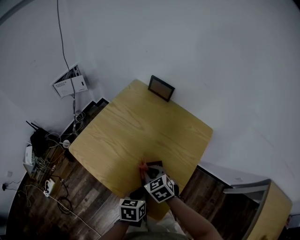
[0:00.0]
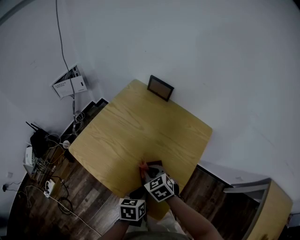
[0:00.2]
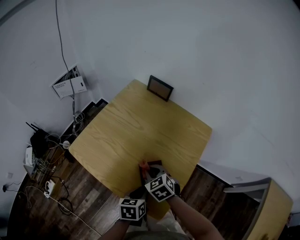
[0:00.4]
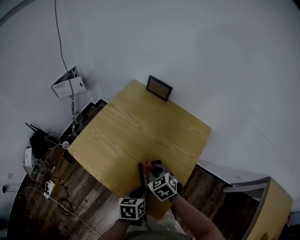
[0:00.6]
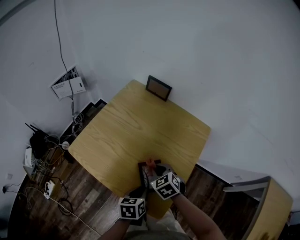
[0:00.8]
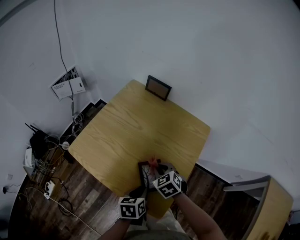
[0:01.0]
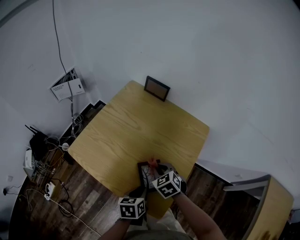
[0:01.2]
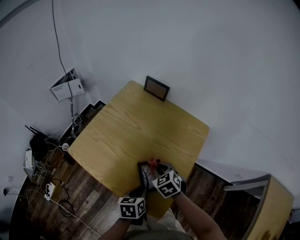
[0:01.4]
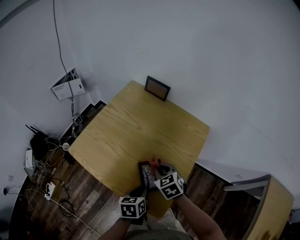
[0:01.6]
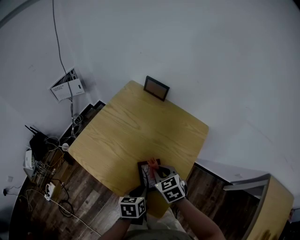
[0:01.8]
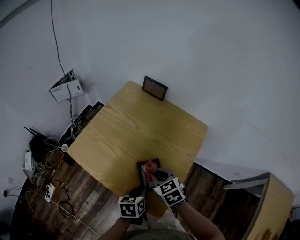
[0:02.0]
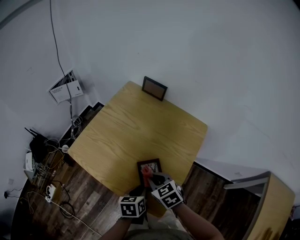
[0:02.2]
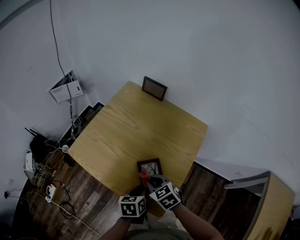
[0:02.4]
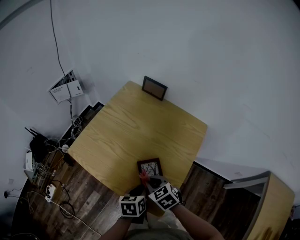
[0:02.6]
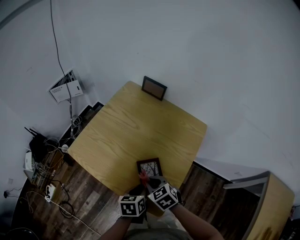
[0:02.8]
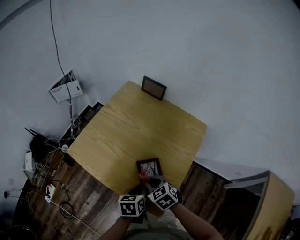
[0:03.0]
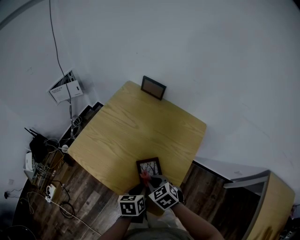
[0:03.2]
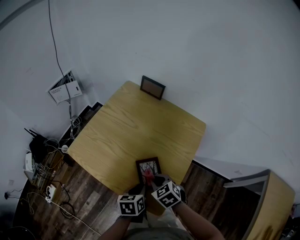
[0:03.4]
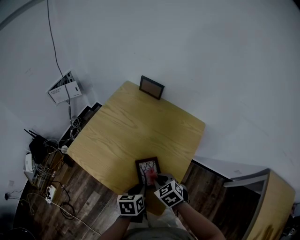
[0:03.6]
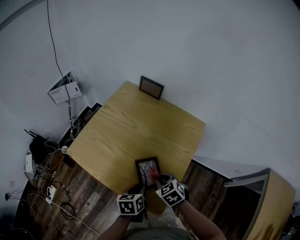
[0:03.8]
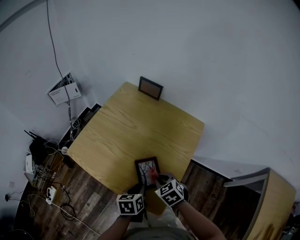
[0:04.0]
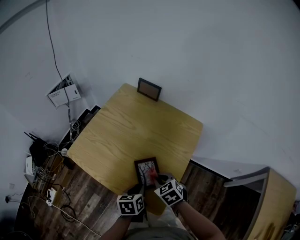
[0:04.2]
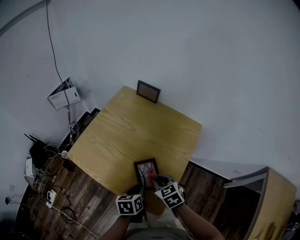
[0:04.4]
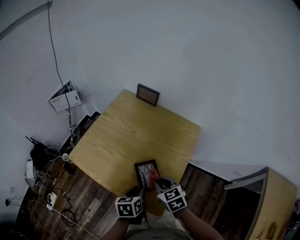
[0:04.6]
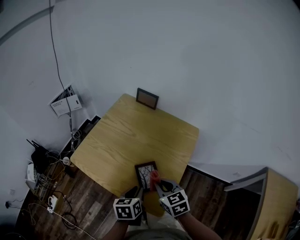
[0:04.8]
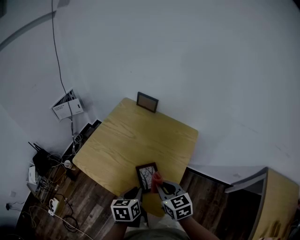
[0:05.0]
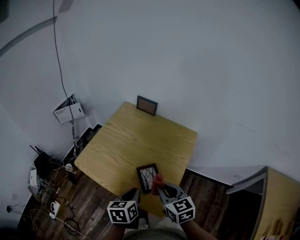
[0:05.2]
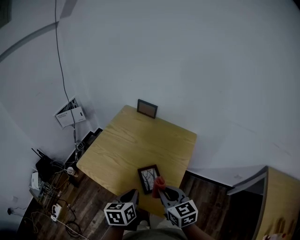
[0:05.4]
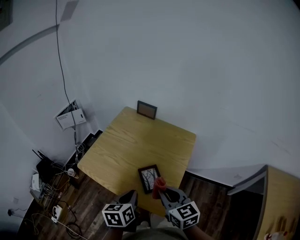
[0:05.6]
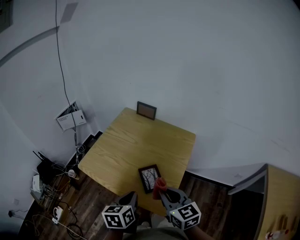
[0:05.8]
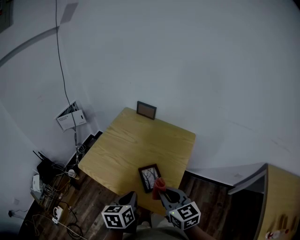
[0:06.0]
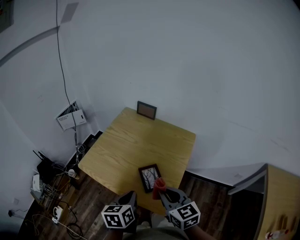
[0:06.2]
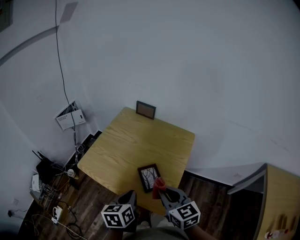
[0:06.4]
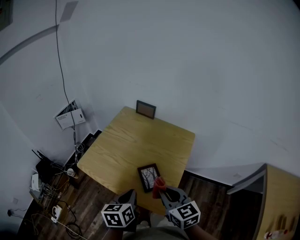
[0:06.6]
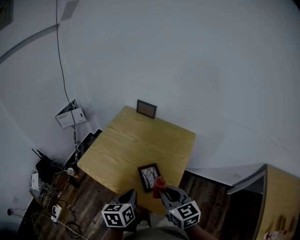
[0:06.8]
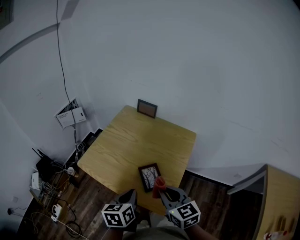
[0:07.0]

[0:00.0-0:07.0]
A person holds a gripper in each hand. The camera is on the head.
0:00.0 to 0:01.4: The right gripper shifts about 5 cm to the right.
0:01.4 to 0:02.8: The right gripper heads backward, covering some 10 cm.
0:02.8 to 0:04.2: The right gripper travels to the right by approximately 5 cm.
0:04.2 to 0:05.6: The right gripper heads upward and backward, covering about 20 cm, and tilts its fingers some 30 degrees upward. The left gripper shifts some 15 cm upward.
0:05.6 to 0:07.0: Neither gripper changes place.

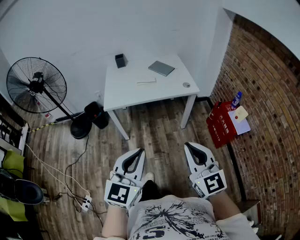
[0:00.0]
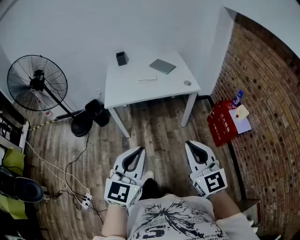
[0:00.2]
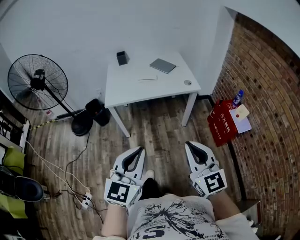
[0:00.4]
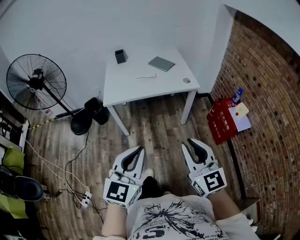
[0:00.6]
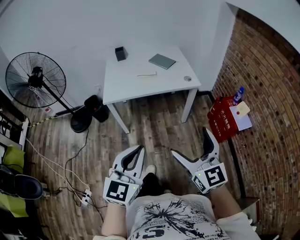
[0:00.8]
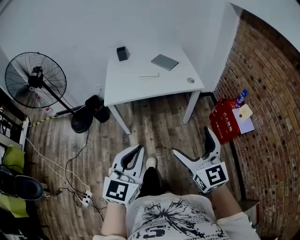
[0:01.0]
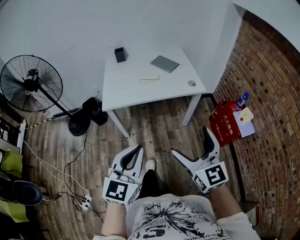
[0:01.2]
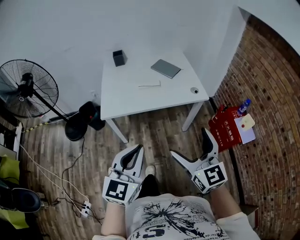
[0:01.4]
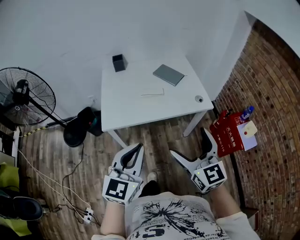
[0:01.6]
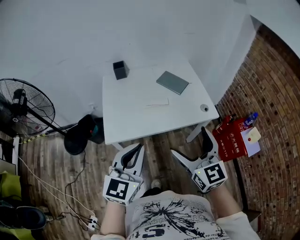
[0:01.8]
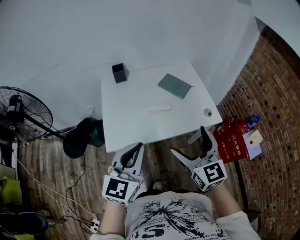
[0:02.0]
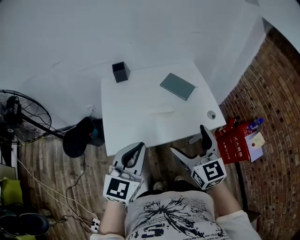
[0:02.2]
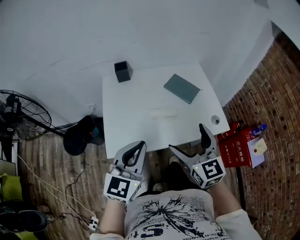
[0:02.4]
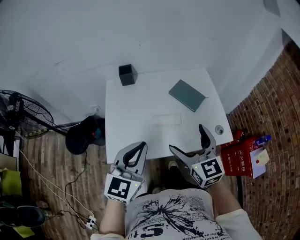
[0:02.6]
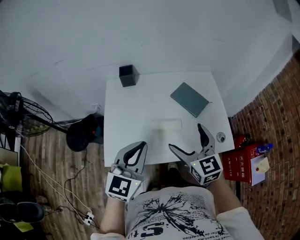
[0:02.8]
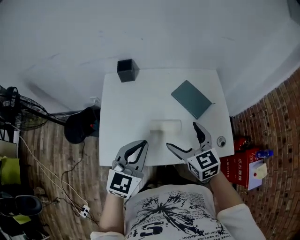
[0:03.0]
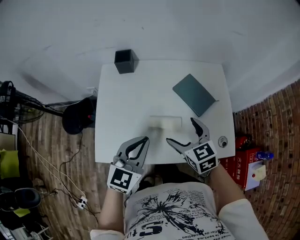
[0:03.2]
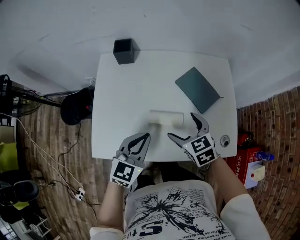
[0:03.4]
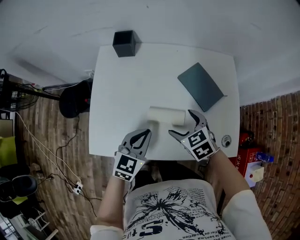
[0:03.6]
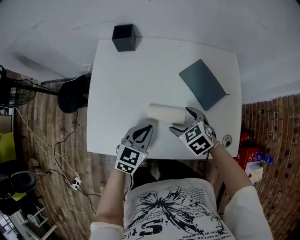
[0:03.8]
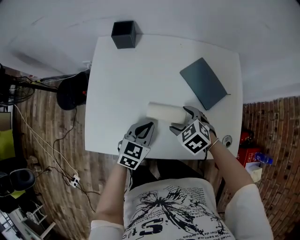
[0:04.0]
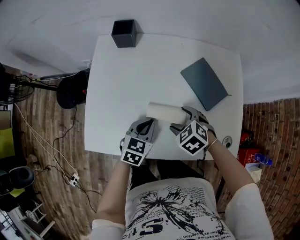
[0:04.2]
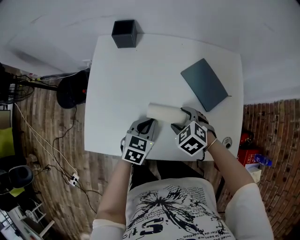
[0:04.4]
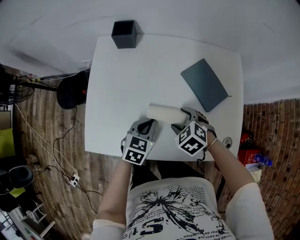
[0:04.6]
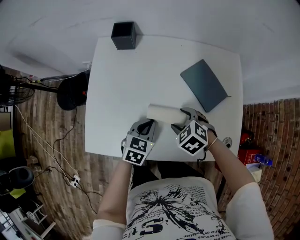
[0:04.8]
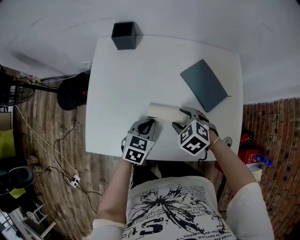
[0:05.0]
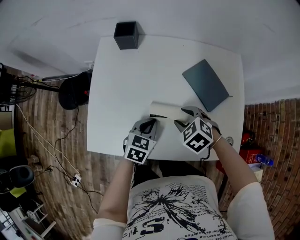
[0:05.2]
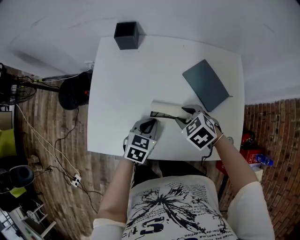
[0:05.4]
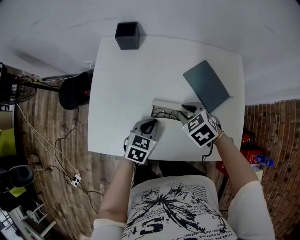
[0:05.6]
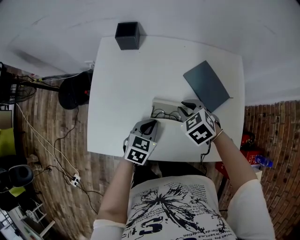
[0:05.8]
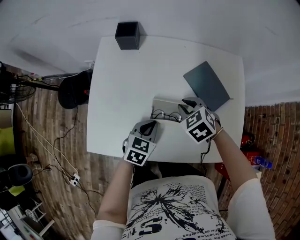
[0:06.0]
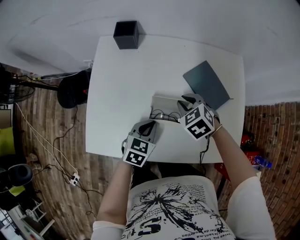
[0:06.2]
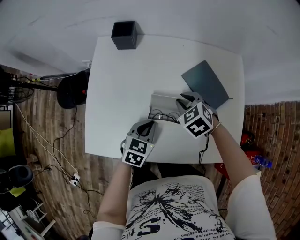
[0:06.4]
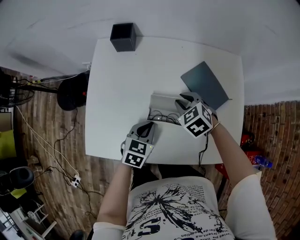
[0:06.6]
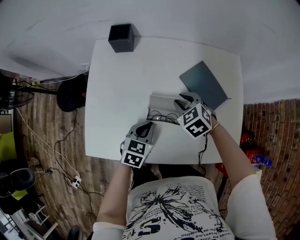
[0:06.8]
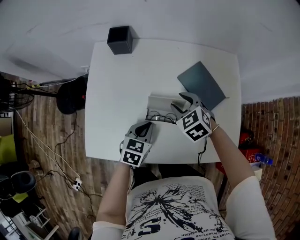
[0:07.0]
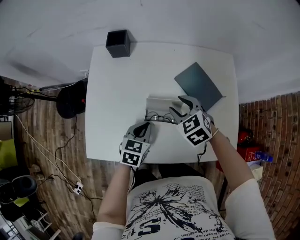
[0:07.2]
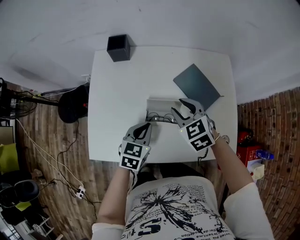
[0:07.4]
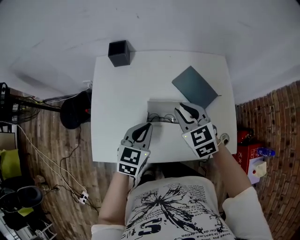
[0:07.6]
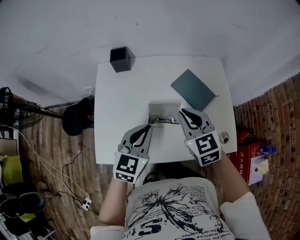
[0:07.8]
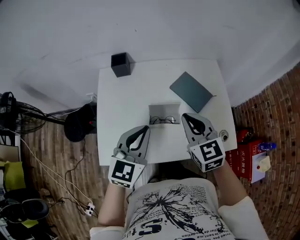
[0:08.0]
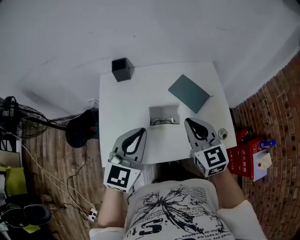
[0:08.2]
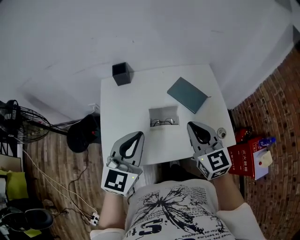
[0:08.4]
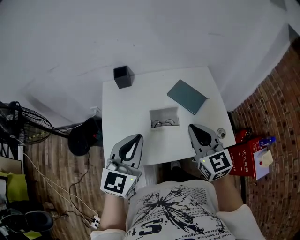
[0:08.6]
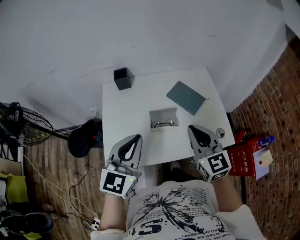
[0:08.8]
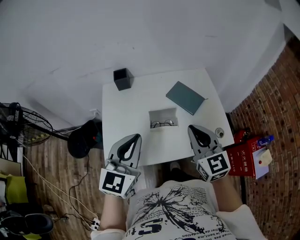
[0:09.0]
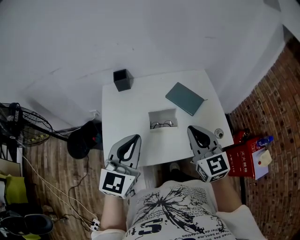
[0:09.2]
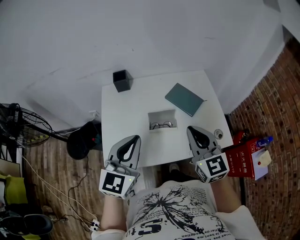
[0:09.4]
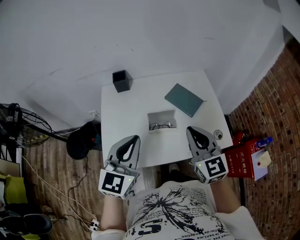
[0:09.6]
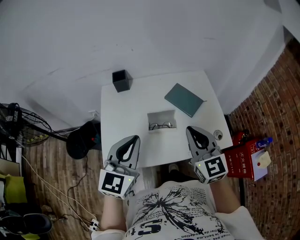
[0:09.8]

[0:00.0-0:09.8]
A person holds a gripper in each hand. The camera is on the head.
0:00.0 to 0:01.4: The two grippers go approximately 20 cm forward. The right gripper opens up.
0:01.4 to 0:02.8: The two grippers travel together, forward, about 40 cm.
0:02.8 to 0:04.2: The two grippers go roughly 30 cm downward and forward. The right gripper angles its fingers downward, by some 50 degrees; the left gripper tips its fingers downward by roughly 30 degrees.
0:04.2 to 0:05.6: The right gripper shifts by roughly 5 cm, and closes its fingers.
0:05.6 to 0:07.0: The right gripper is displaced forward by approximately 5 cm.
0:07.0 to 0:08.4: The left gripper shifts about 30 cm upward, and tilts its fingers approximately 40 degrees upward. Meanwhile the right gripper is displaced upward and backward by approximately 30 cm, and angles its fingers upward, by about 40 degrees.
0:08.4 to 0:09.8: The grippers move only a little.

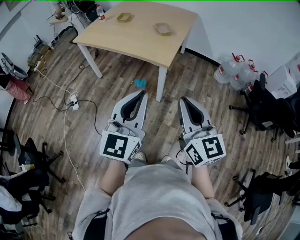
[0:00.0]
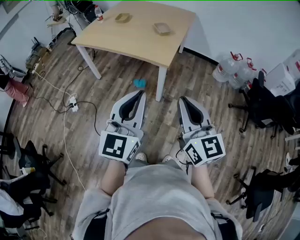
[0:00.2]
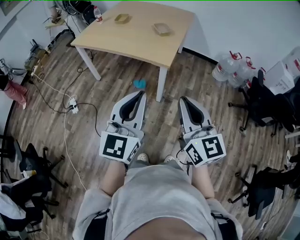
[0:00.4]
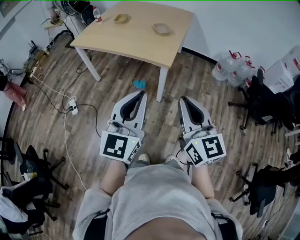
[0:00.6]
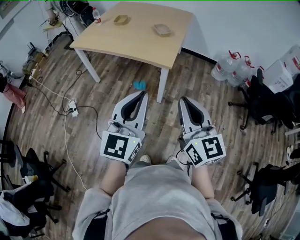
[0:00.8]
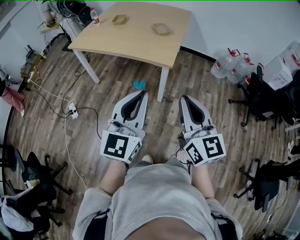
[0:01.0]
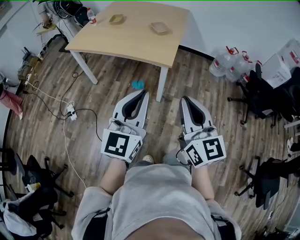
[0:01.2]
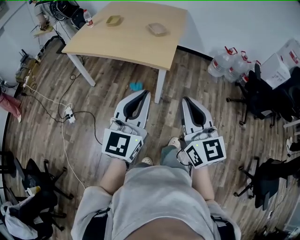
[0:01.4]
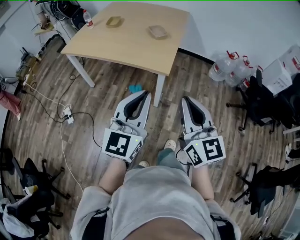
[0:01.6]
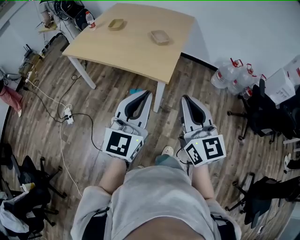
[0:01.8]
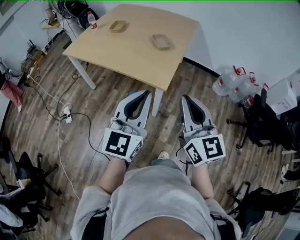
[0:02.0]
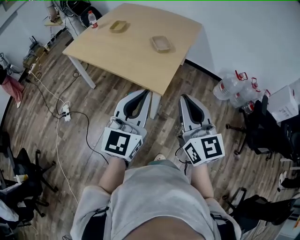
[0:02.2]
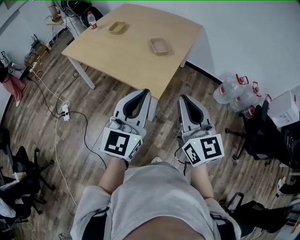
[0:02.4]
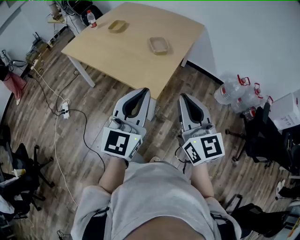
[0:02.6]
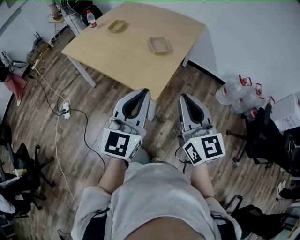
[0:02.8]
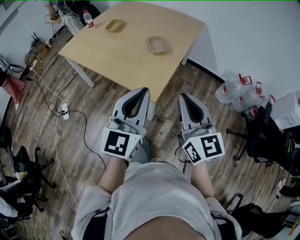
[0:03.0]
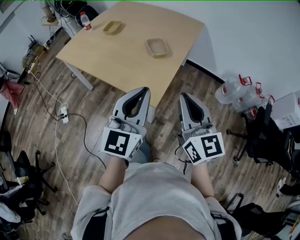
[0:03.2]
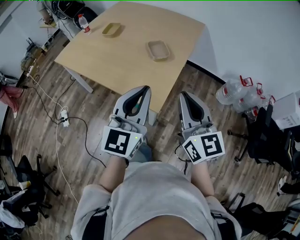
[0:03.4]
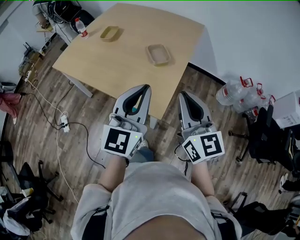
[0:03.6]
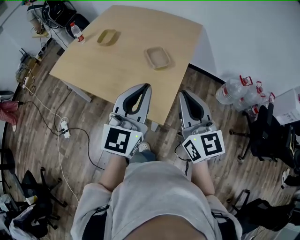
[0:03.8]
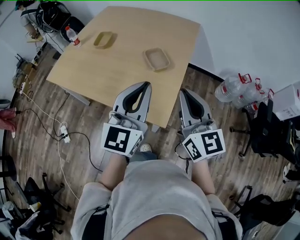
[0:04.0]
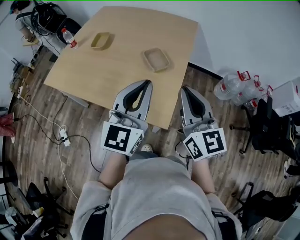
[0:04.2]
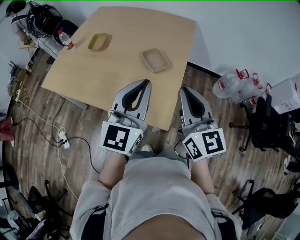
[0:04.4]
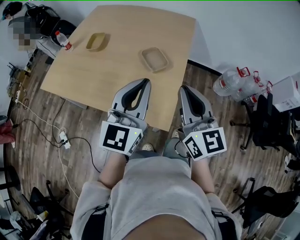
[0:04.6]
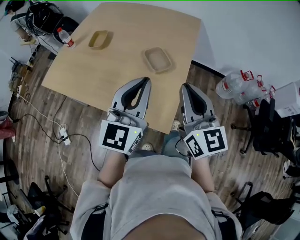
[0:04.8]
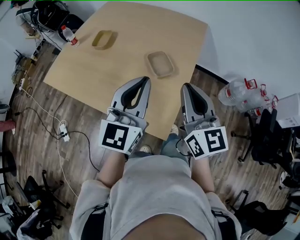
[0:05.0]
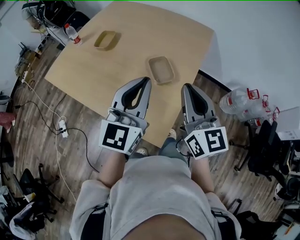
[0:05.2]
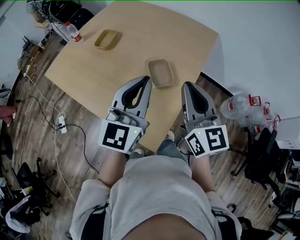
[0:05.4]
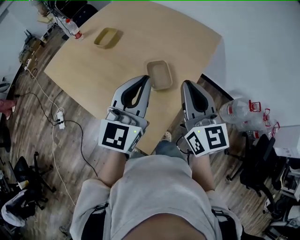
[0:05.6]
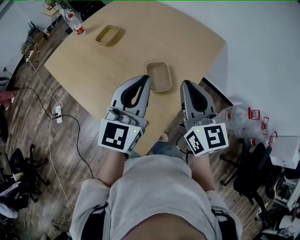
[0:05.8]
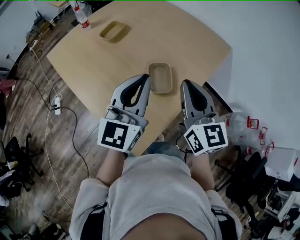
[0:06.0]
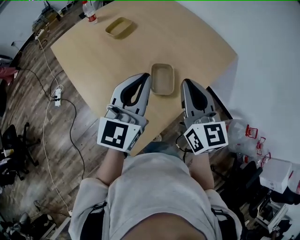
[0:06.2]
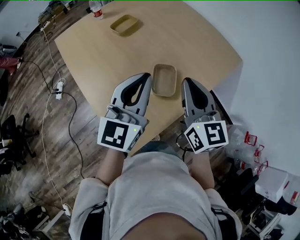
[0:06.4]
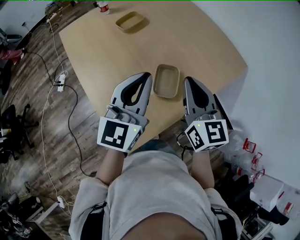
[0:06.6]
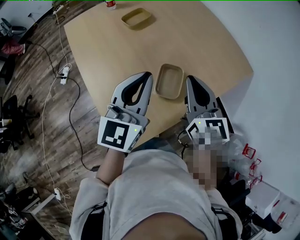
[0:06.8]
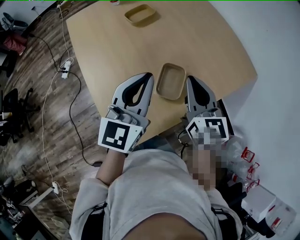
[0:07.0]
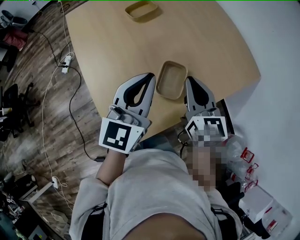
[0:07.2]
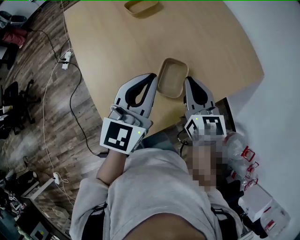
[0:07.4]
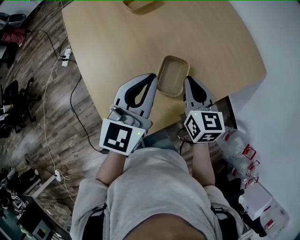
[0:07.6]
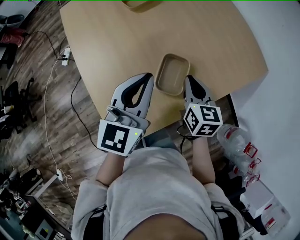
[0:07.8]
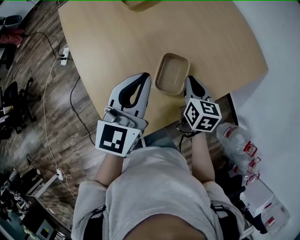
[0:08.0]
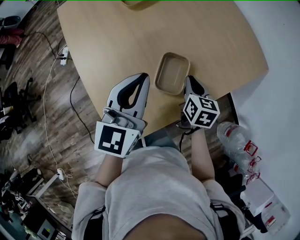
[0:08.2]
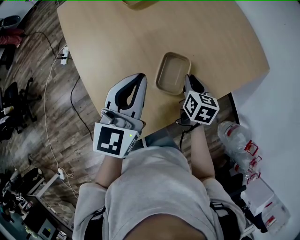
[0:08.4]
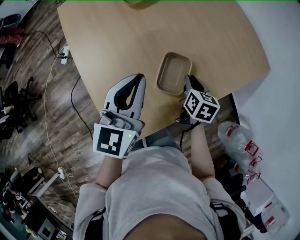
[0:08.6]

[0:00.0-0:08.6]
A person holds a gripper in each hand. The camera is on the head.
0:00.0 to 0:01.4: The right gripper heads to the left, covering some 5 cm; the left gripper heads to the left and forward, covering roughly 5 cm.
0:01.4 to 0:02.8: Both grippers move forward and to the right, about 25 cm.
0:02.8 to 0:04.4: The right gripper is displaced forward and to the left by some 20 cm; the left gripper travels forward by roughly 20 cm.
0:04.4 to 0:05.8: Both grippers move forward, roughly 20 cm. The left gripper swivels about 20 degrees.
0:05.8 to 0:07.2: The right gripper goes roughly 15 cm forward and downward, and swivels about 20 degrees; the left gripper is displaced forward and downward by approximately 10 cm, and rotates approximately 20 degrees.
0:07.2 to 0:08.6: The right gripper travels downward by about 20 cm, and swivels some 30 degrees, while the left gripper changes place by approximately 5 cm.
